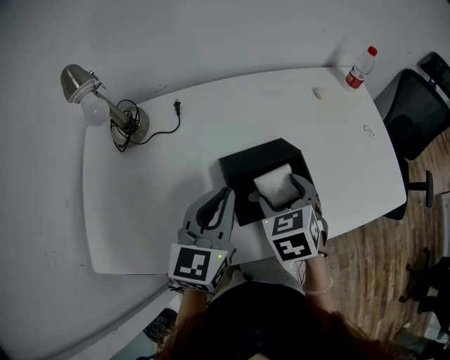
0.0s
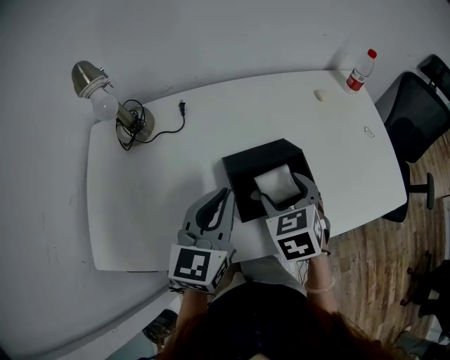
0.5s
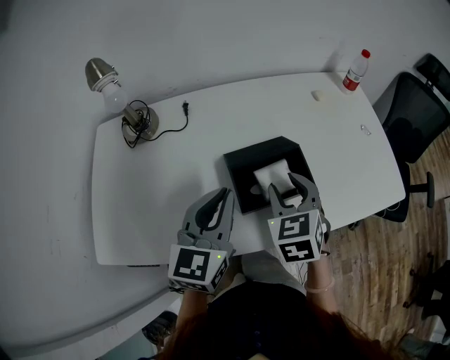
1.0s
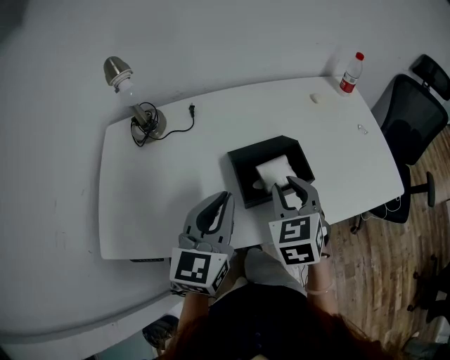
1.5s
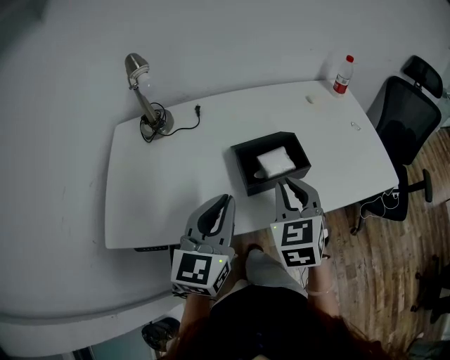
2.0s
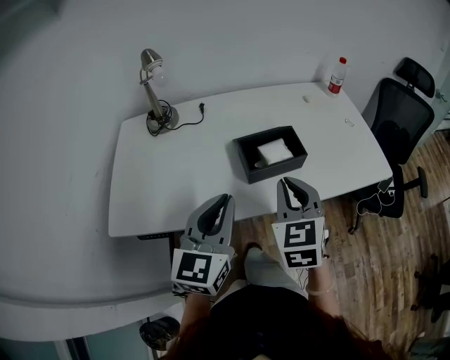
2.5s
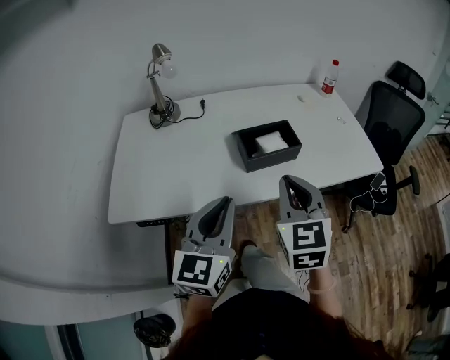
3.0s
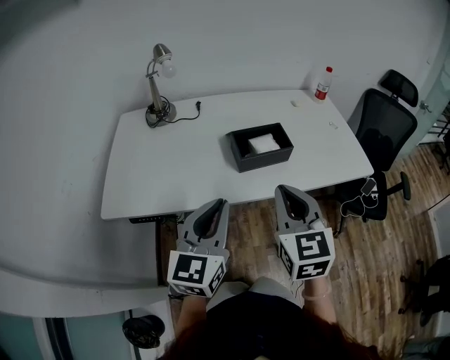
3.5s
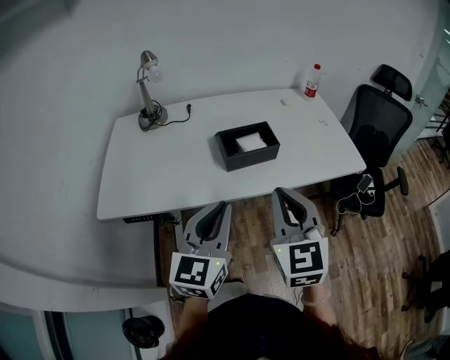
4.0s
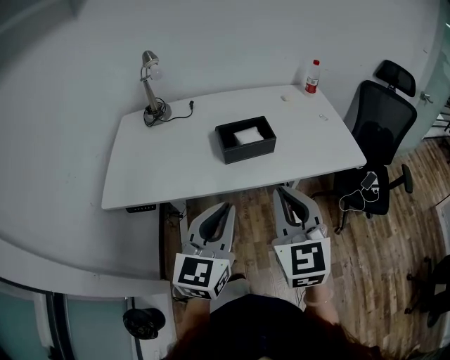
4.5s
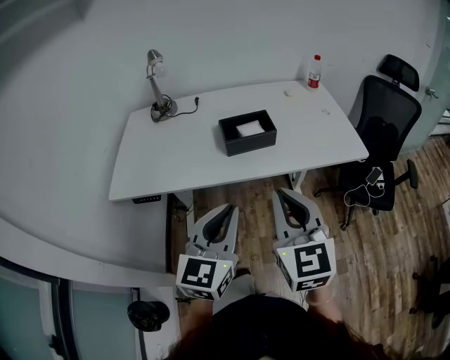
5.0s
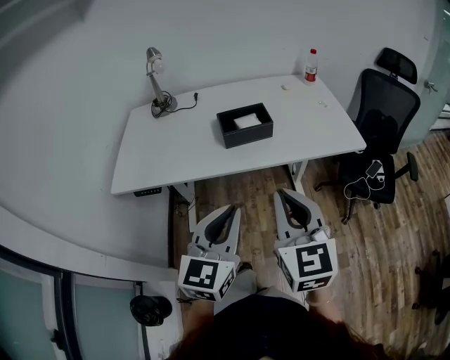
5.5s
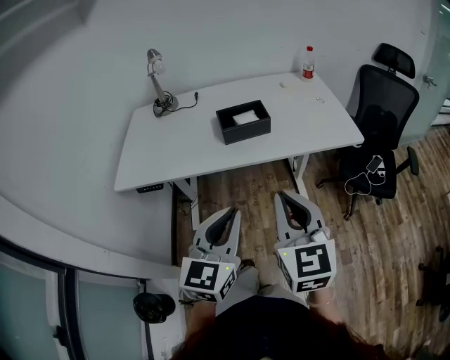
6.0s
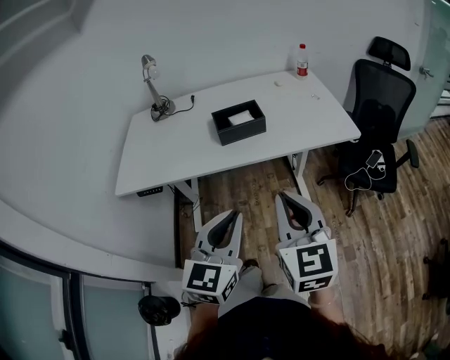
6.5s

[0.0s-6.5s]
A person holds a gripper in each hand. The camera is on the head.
0.0s to 2.0s: The left gripper travels backward by approximately 15 cm, while the right gripper travels backward and upward by roughly 15 cm, turns by roughly 20 degrees, and closes up.
2.0s to 4.5s: The right gripper is displaced backward and upward by some 25 cm, and changes its angle by some 20 degrees. The left gripper travels backward and to the right by roughly 20 cm.
4.5s to 6.5s: The two grippers go about 10 cm backward and to the right.

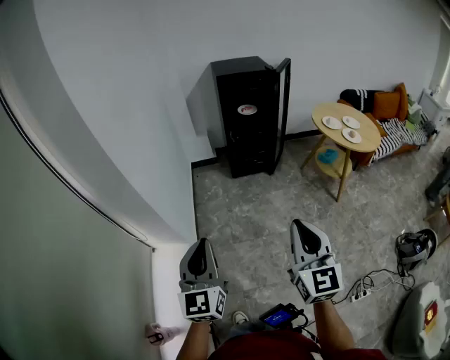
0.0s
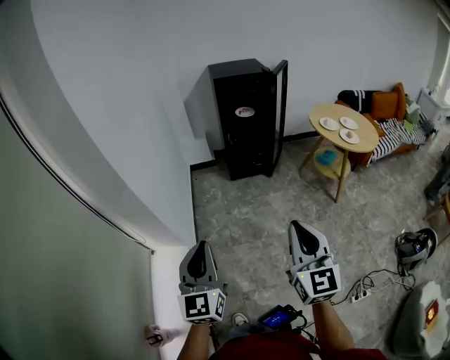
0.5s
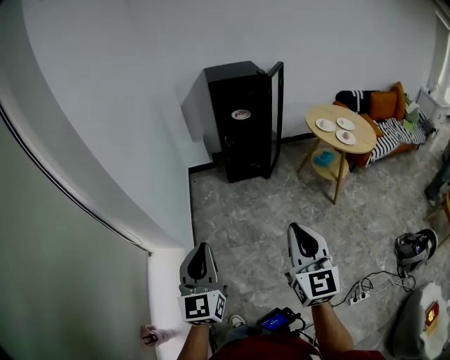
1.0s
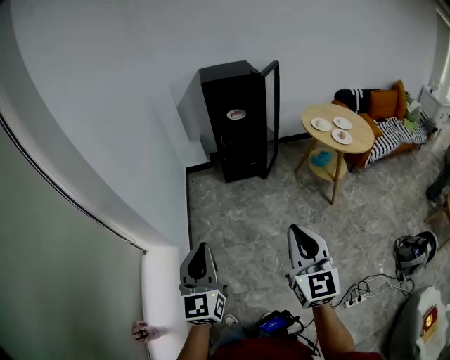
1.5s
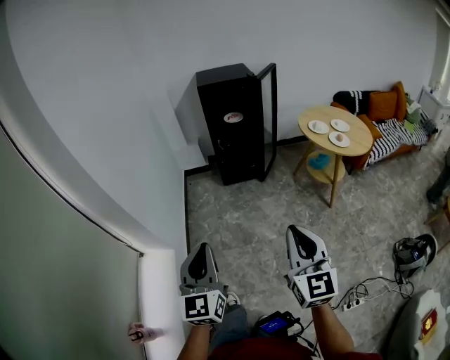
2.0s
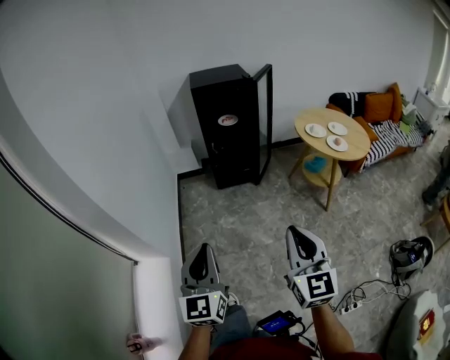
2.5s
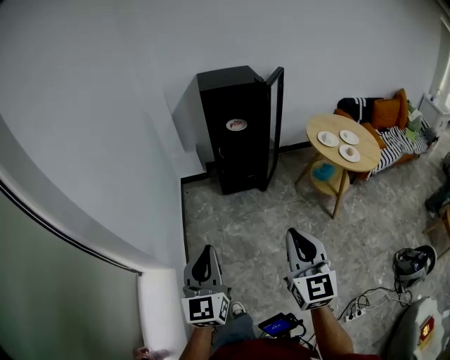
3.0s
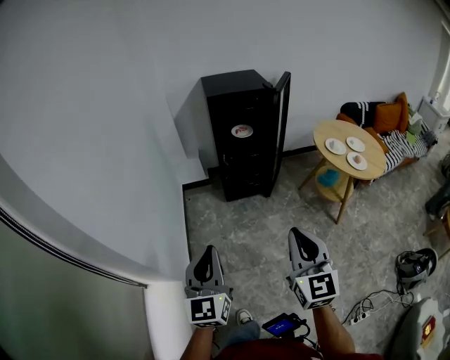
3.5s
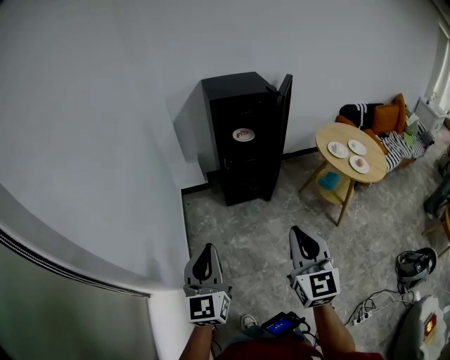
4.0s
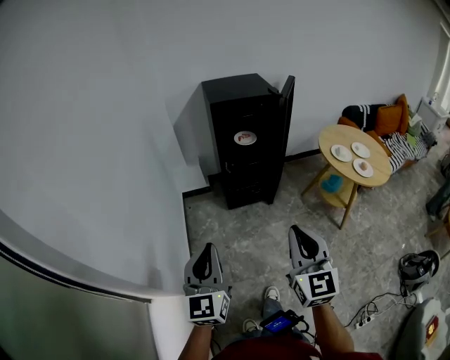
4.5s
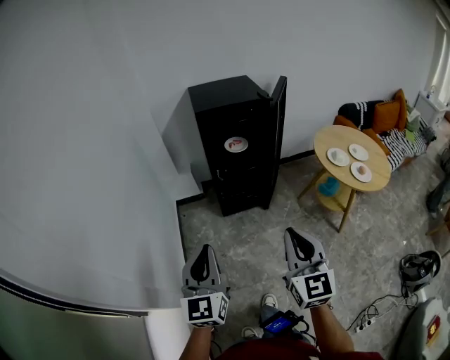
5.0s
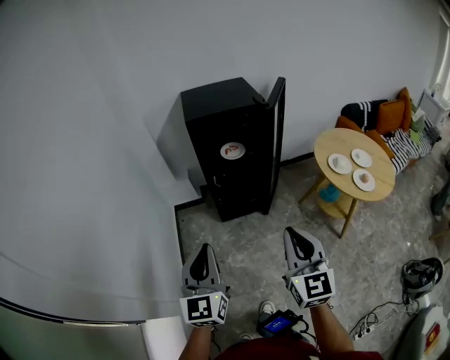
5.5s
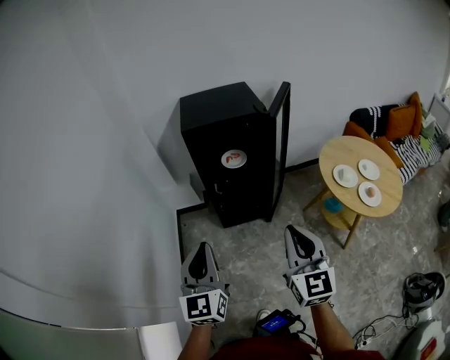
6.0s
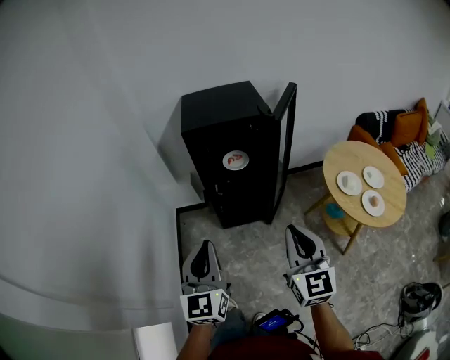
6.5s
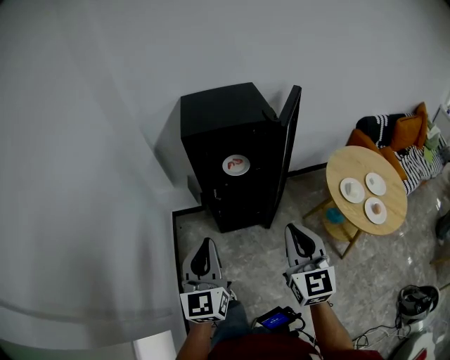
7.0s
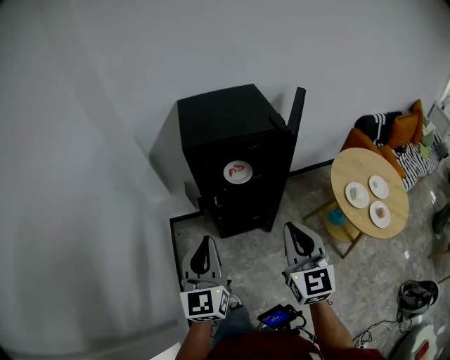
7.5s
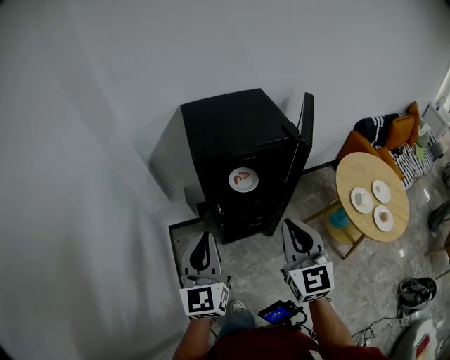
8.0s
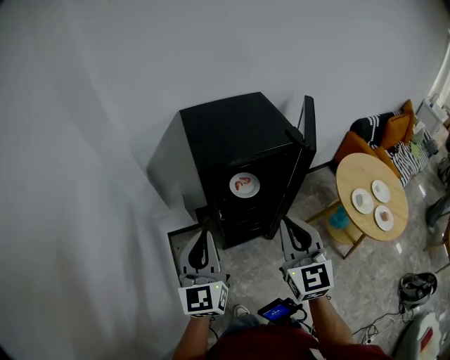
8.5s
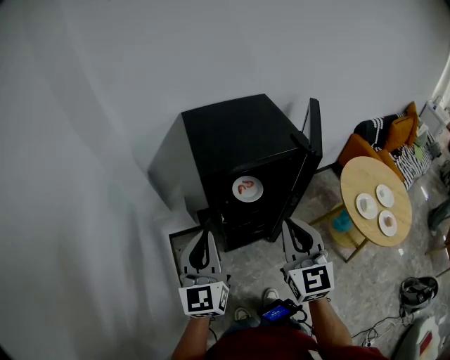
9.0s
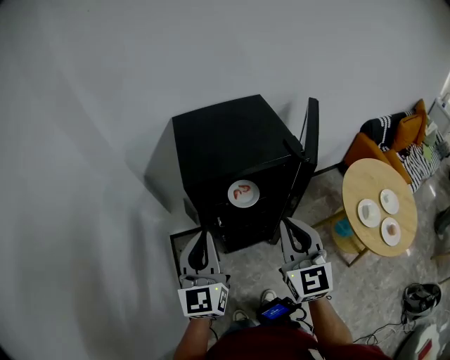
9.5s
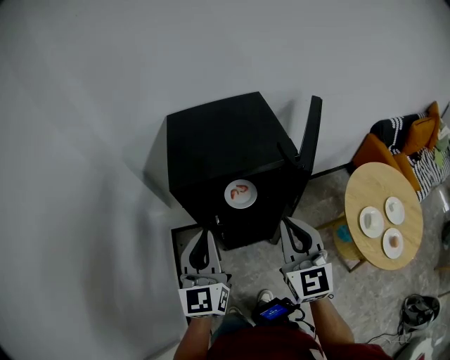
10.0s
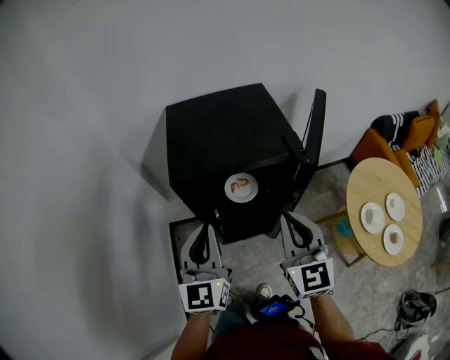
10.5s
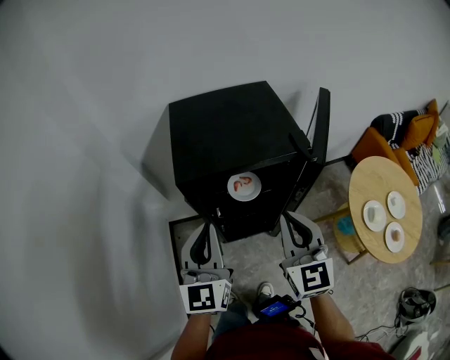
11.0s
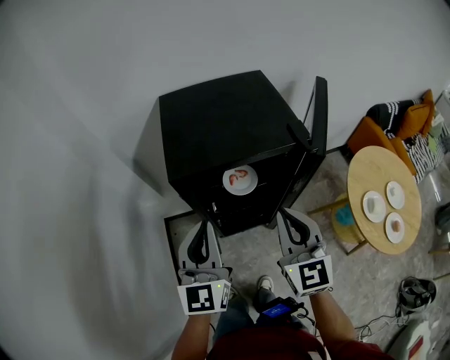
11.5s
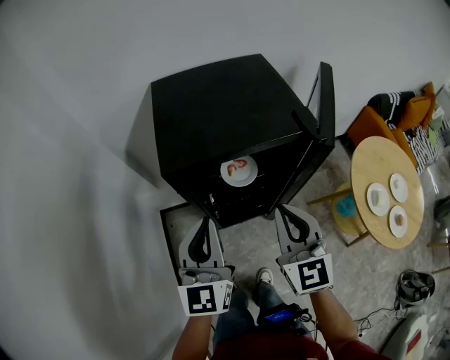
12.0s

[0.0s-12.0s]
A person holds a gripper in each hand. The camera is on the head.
0.0s to 2.0s: Both grippers move to the right, approximately 15 cm.
2.0s to 4.0s: The two grippers go approximately 30 cm forward and to the left.
4.0s to 6.0s: The grippers both shift forward and to the right by approximately 30 cm.
6.0s to 8.0s: The right gripper travels forward and to the left by approximately 25 cm. Meanwhile the left gripper shifts approximately 25 cm forward.
8.0s to 10.0s: The two grippers go some 15 cm forward and to the right.
10.0s to 12.0s: The right gripper travels to the left by some 5 cm. The left gripper shifts by some 5 cm.

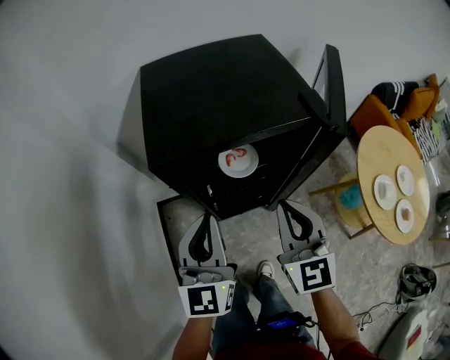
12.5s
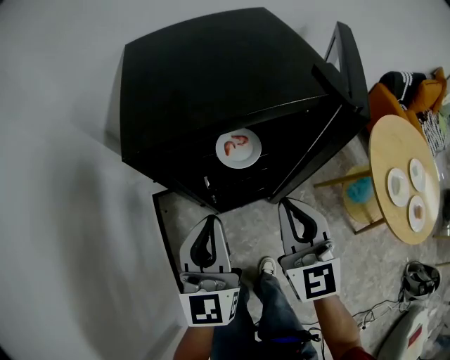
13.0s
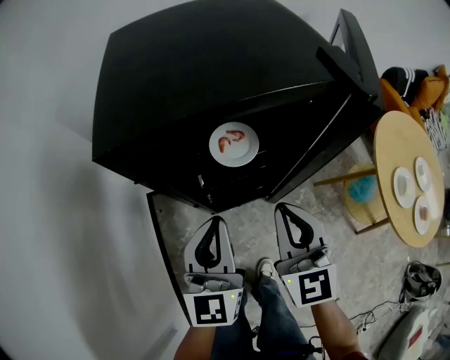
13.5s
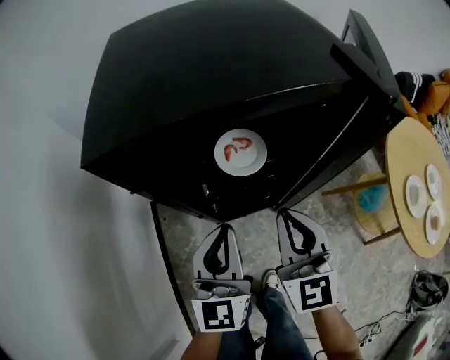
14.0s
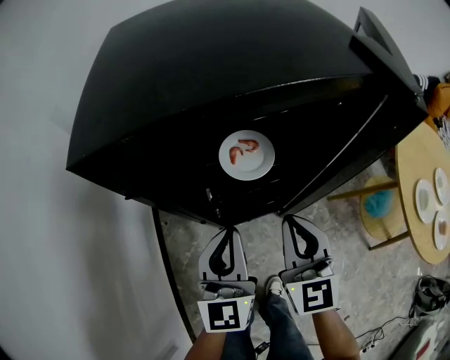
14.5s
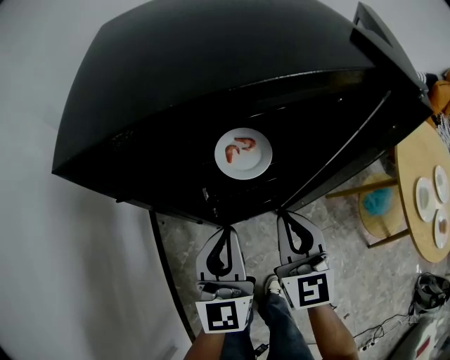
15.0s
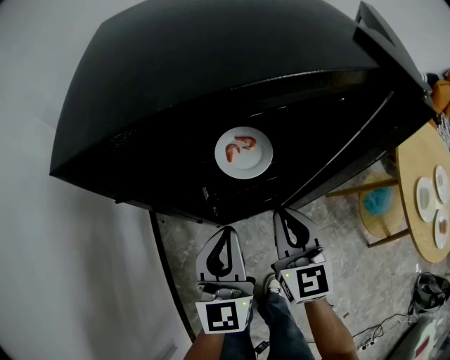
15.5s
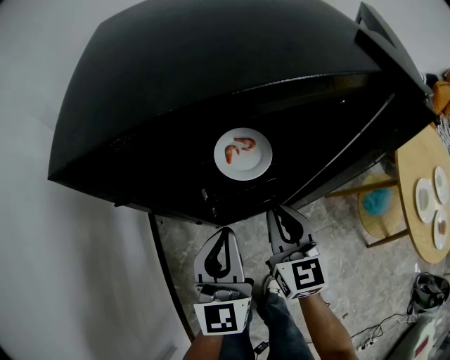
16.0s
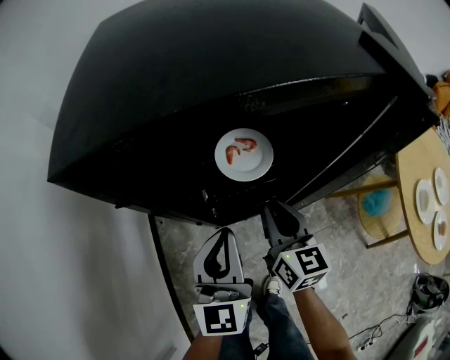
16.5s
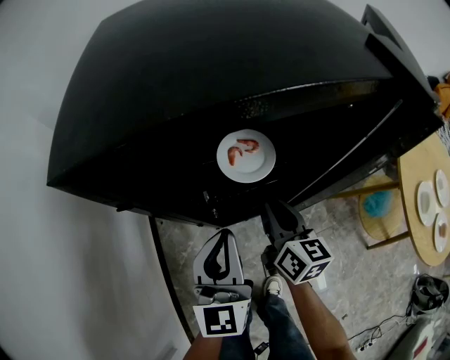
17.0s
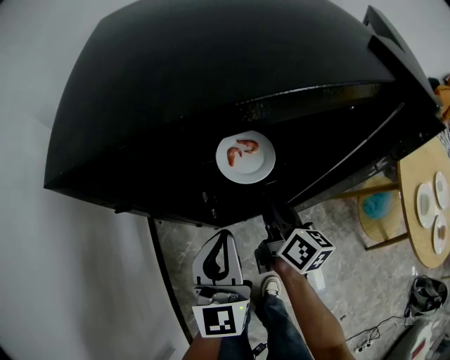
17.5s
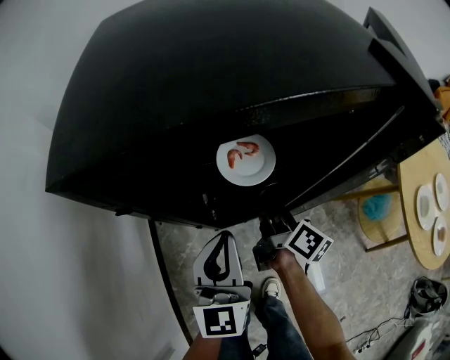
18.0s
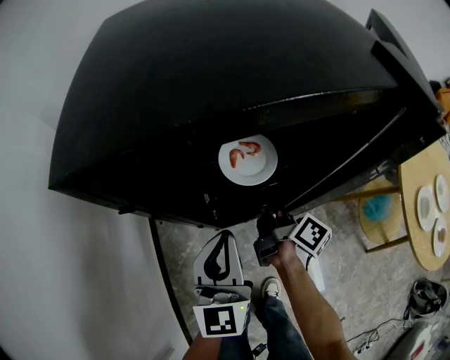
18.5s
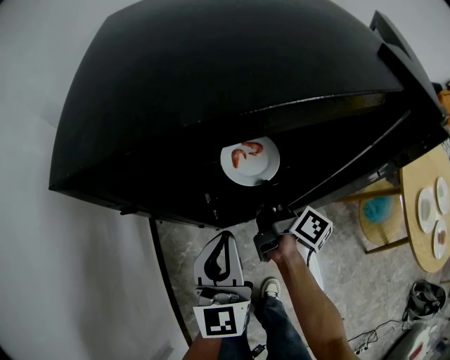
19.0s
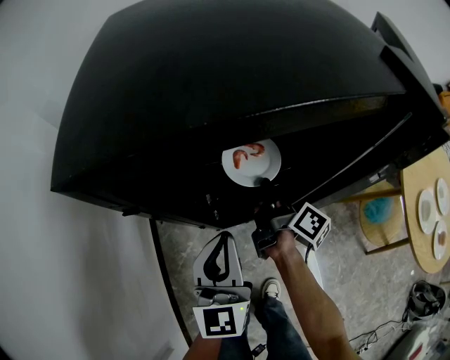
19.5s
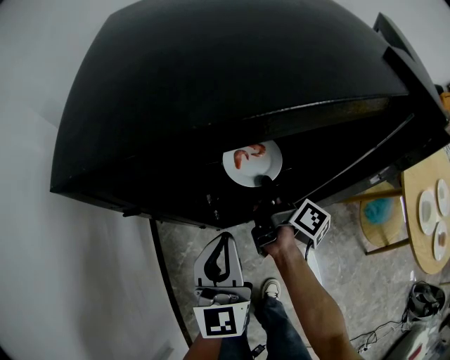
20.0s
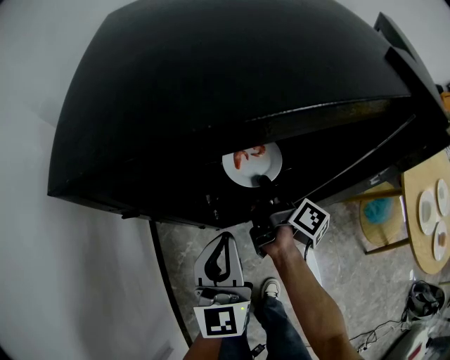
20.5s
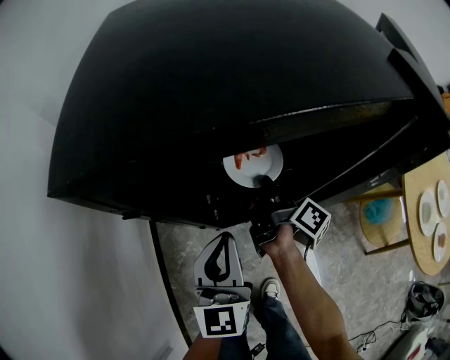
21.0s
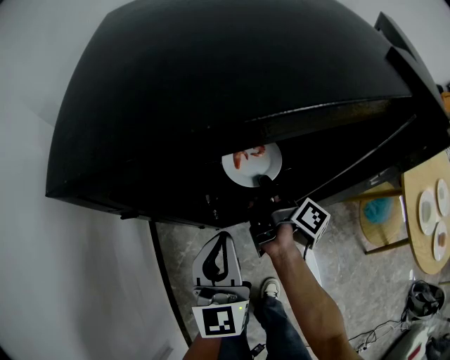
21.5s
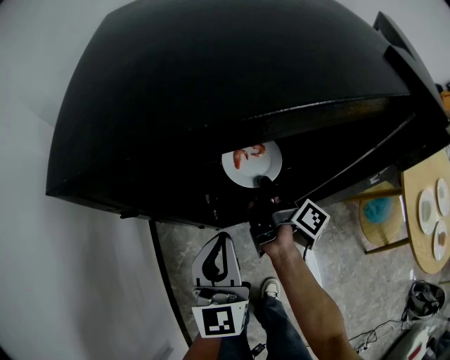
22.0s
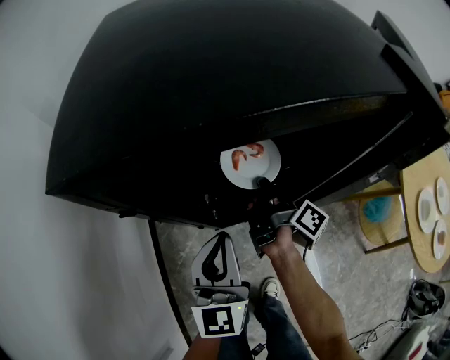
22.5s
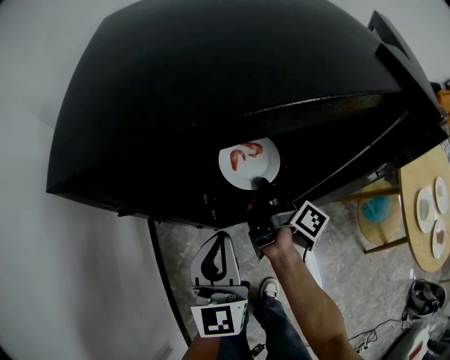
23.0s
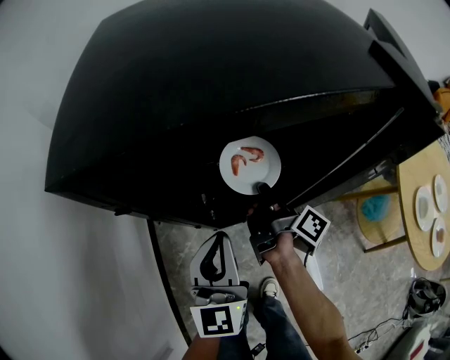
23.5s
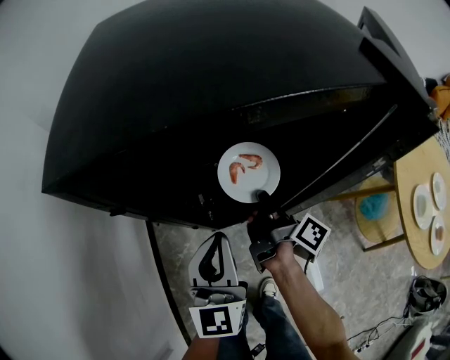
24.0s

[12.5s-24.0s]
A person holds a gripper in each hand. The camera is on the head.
12.5s to 14.5s: The two grippers go about 20 cm downward.
14.5s to 16.5s: The right gripper is displaced downward by approximately 10 cm, and swivels about 20 degrees.
16.5s to 18.5s: The right gripper shifts roughly 5 cm forward, and twists about 60 degrees clockwise, seen from behind.
18.5s to 24.0s: There are only small adjustments of the grippers.
